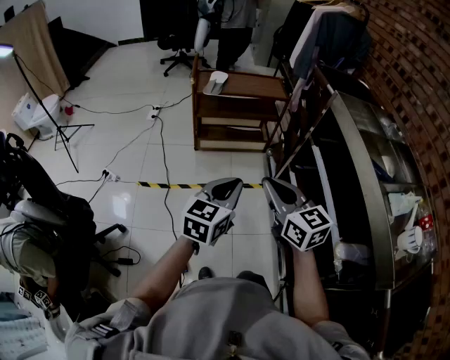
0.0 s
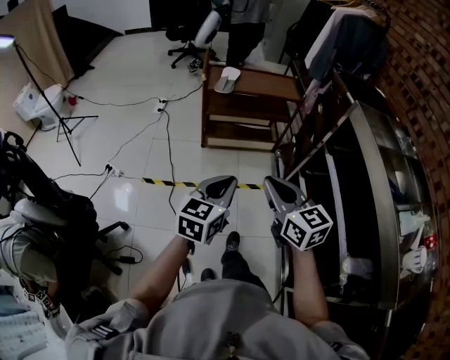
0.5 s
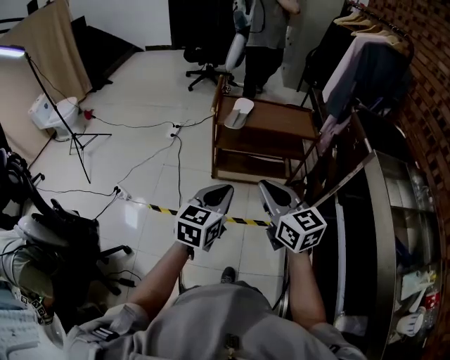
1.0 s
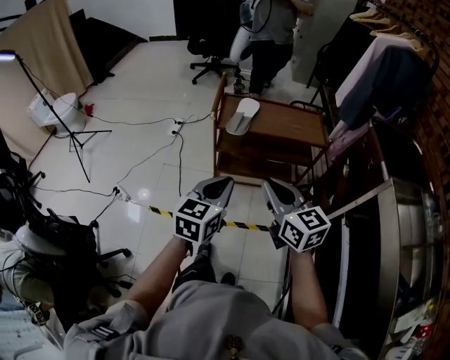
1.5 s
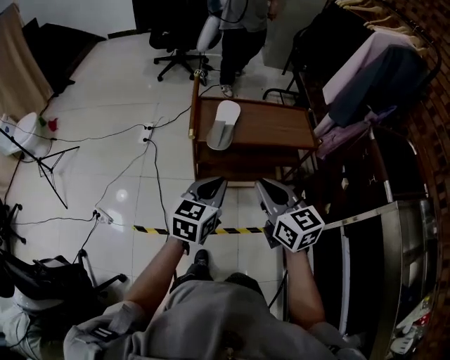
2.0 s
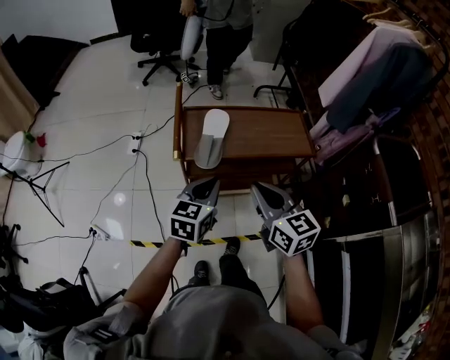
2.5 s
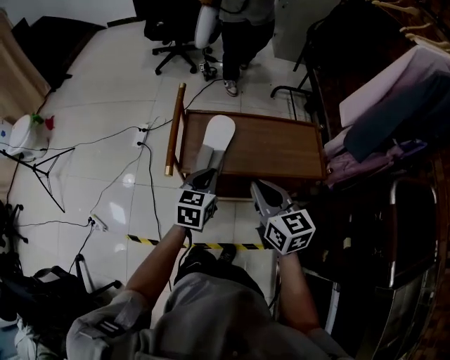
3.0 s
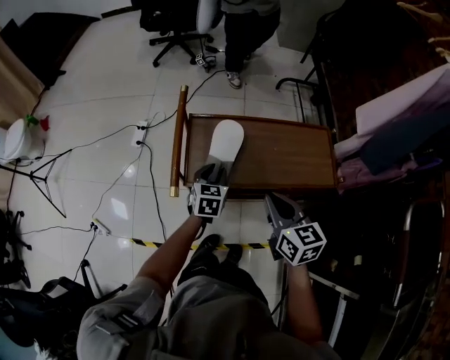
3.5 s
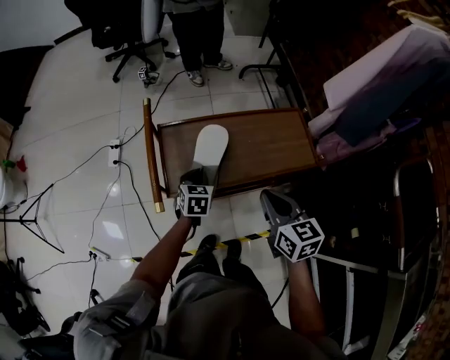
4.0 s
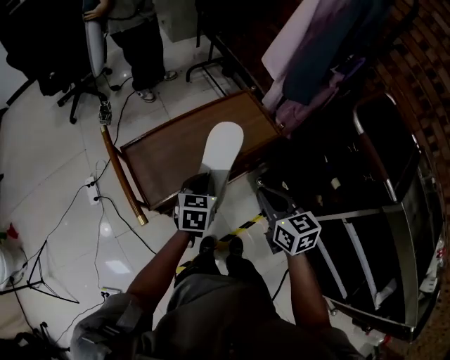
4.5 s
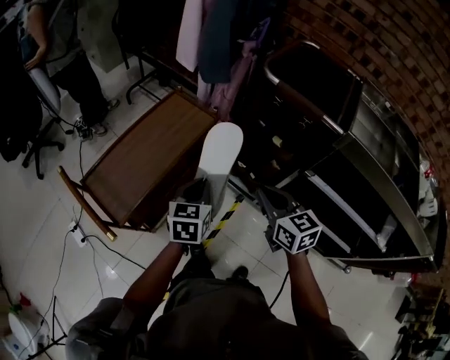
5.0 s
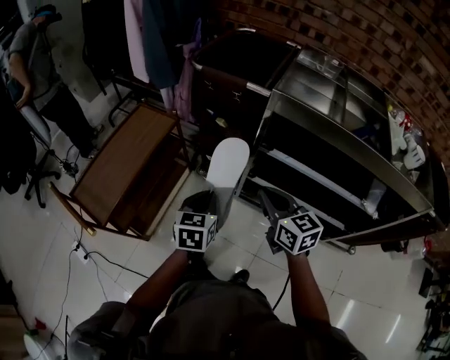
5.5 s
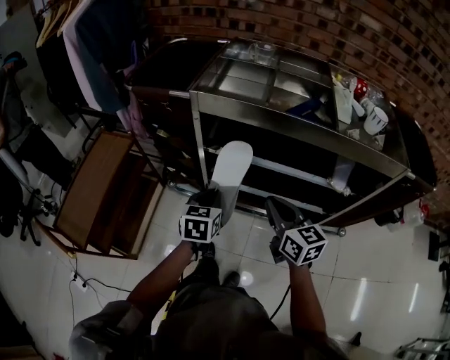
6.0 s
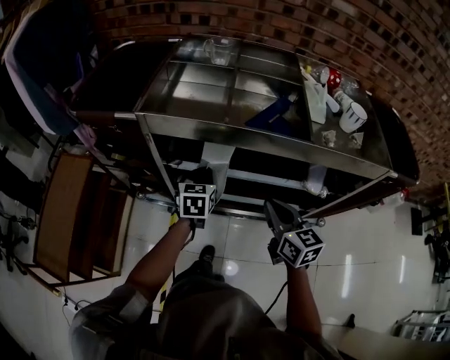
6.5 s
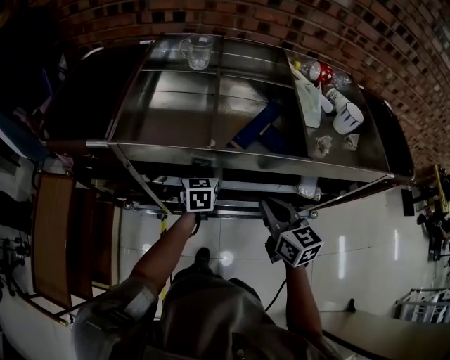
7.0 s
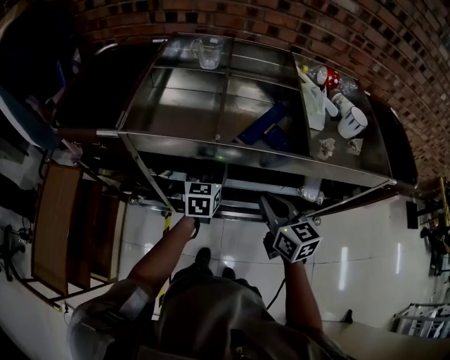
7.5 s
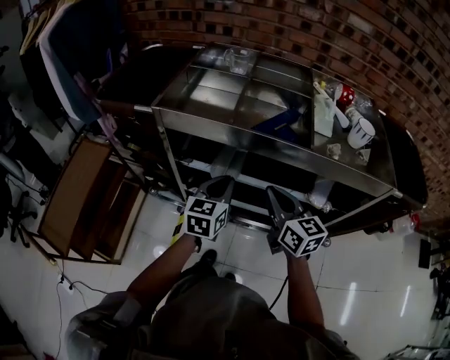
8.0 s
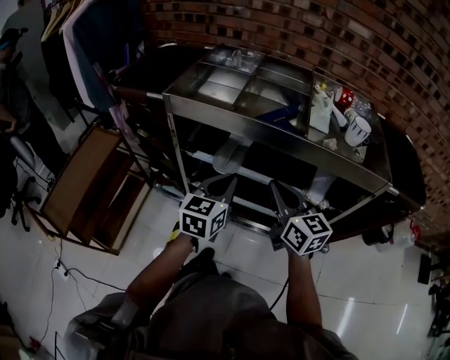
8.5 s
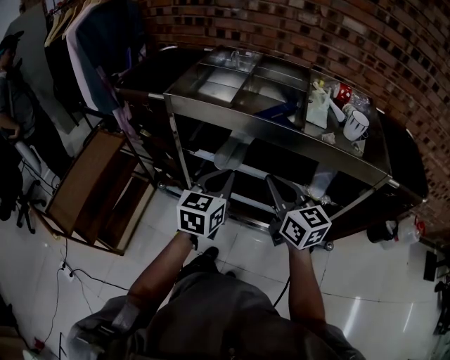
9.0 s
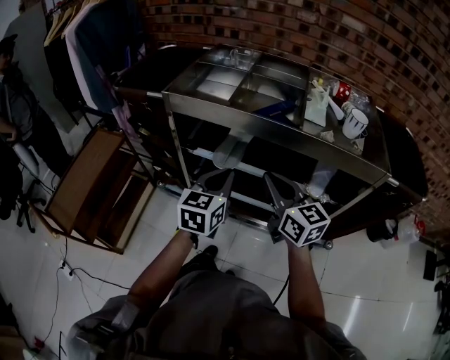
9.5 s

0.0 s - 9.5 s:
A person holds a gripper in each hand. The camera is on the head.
0.0 s - 2.0 s: The pair of grippers is taken forward, some 50 cm.
2.0 s - 4.0 s: The right gripper shifts approximately 30 cm forward, downward and to the right, and rotates approximately 20 degrees. Meanwhile the left gripper travels forward and downward by approximately 40 cm, rotates about 30 degrees, and opens, then closes again.
4.0 s - 5.5 s: The pair of grippers is taken approximately 50 cm. The right gripper rotates about 50 degrees. The left gripper turns by roughly 60 degrees.
5.5 s - 7.5 s: The left gripper goes roughly 40 cm to the right and forward, changes its angle by roughly 20 degrees, and opens up. Meanwhile the right gripper goes roughly 30 cm to the right, and rotates about 30 degrees.
7.5 s - 9.5 s: The right gripper shifts roughly 10 cm backward and upward, and turns by roughly 20 degrees. The left gripper travels backward and upward by roughly 25 cm, and closes up.

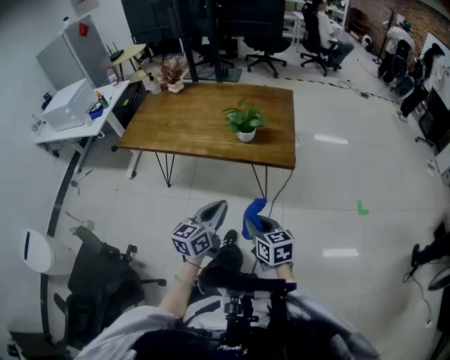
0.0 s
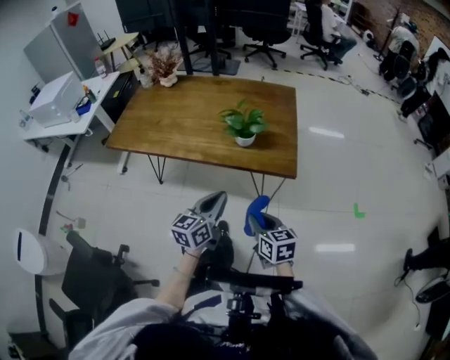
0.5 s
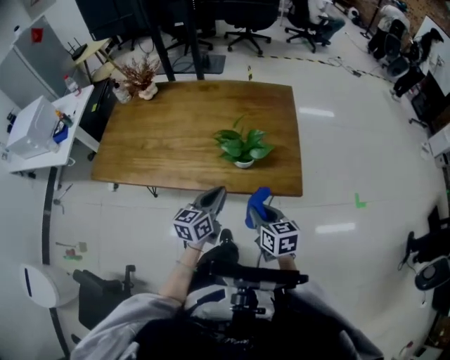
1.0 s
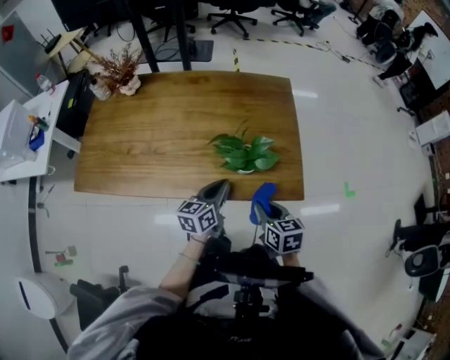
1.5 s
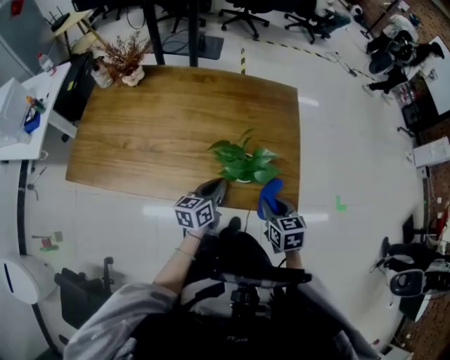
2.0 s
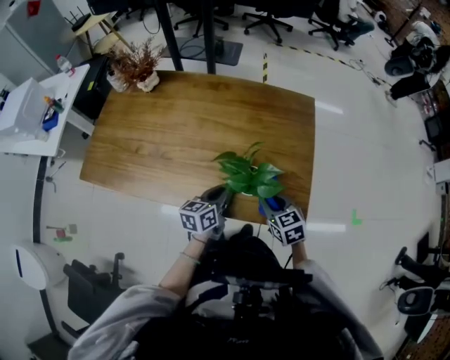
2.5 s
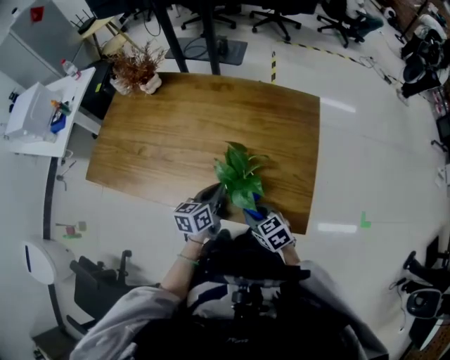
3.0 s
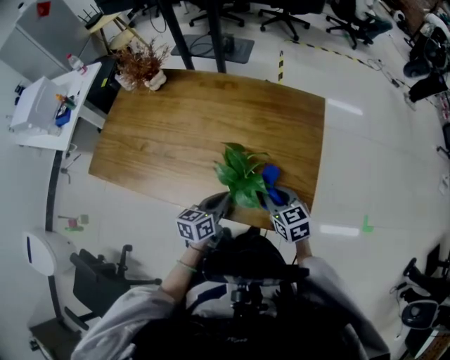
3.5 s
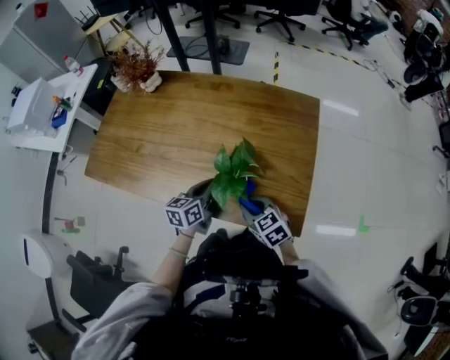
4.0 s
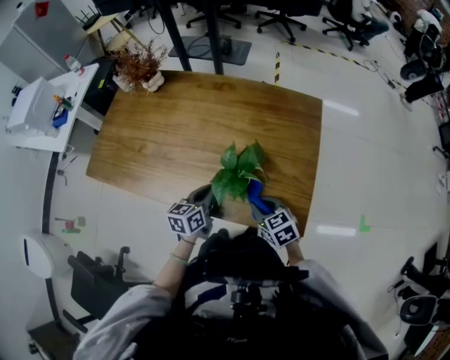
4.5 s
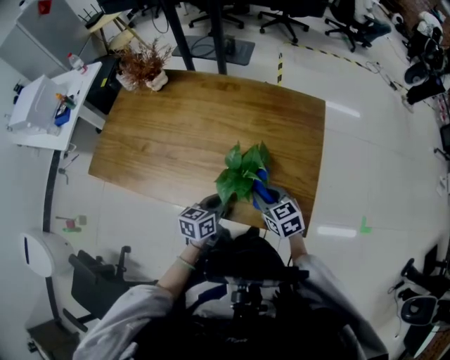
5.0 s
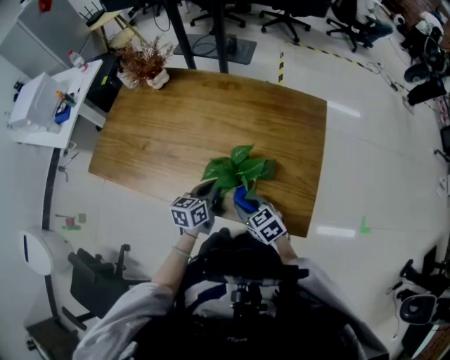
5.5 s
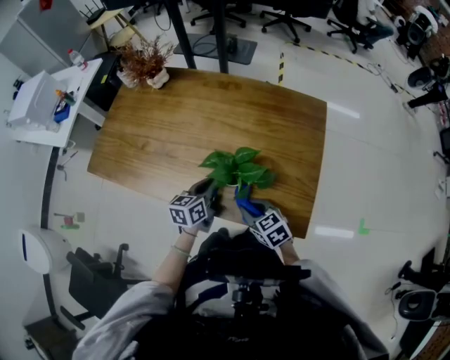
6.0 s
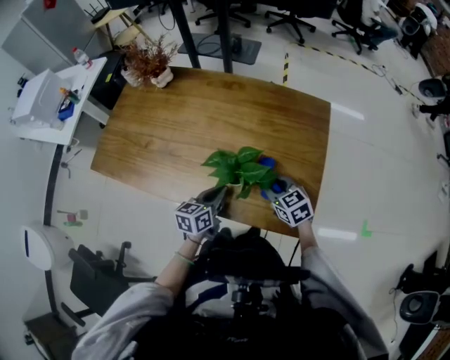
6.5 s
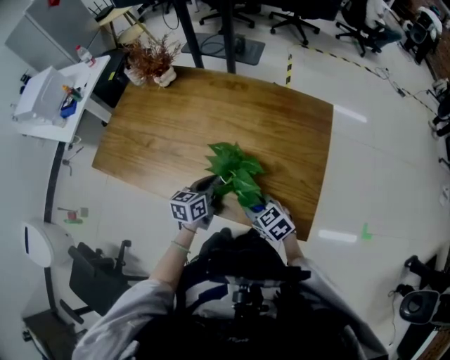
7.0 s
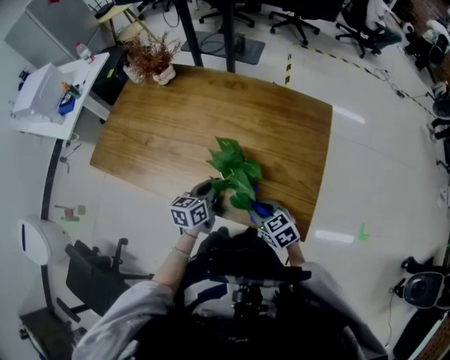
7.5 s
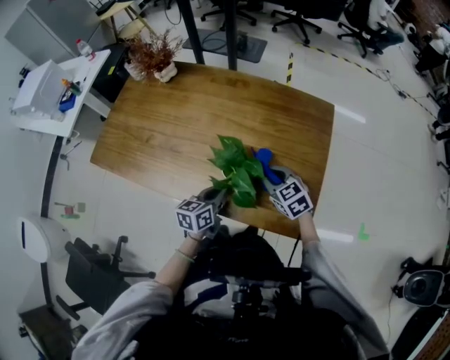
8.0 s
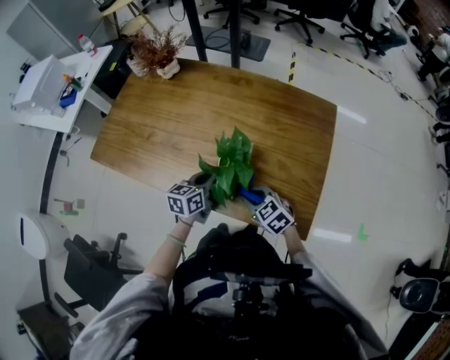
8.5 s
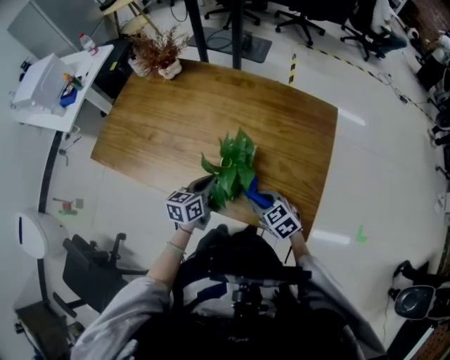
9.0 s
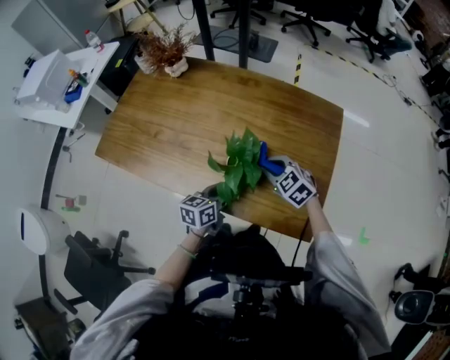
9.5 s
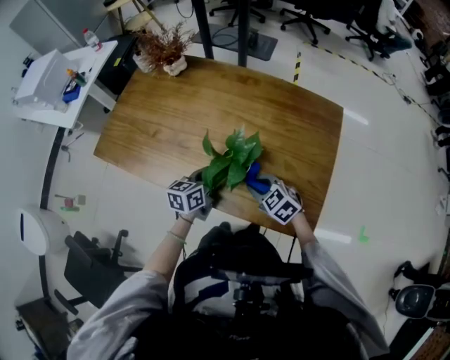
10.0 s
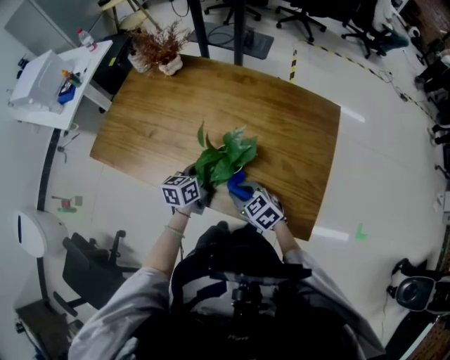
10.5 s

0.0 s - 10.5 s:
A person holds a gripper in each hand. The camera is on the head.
0.0 s - 2.0 s: The two grippers go some 35 cm forward. The right gripper turns by roughly 20 degrees.
2.0 s - 4.0 s: The left gripper moves roughly 5 cm, while the right gripper is displaced to the left by approximately 5 cm, and rotates approximately 30 degrees.
4.0 s - 6.5 s: The right gripper heads forward, covering approximately 5 cm.
6.5 s - 8.5 s: The right gripper goes forward and backward, roughly 10 cm each way, reversing 2 times. Meanwhile the left gripper moves forward and backward over roughly 5 cm, changing direction 2 times.
8.5 s - 10.5 s: The right gripper shifts about 5 cm to the left, while the left gripper shifts by approximately 5 cm.

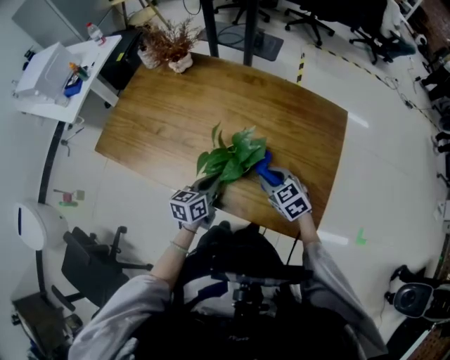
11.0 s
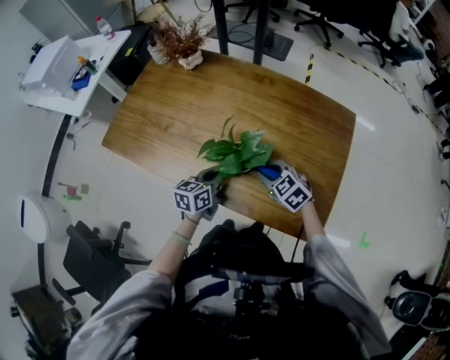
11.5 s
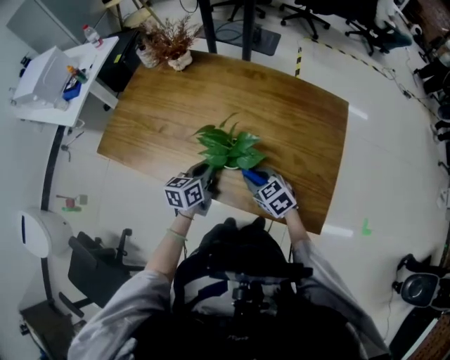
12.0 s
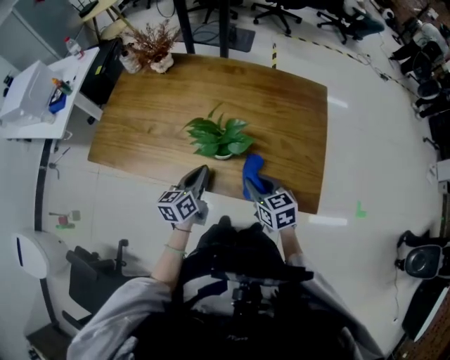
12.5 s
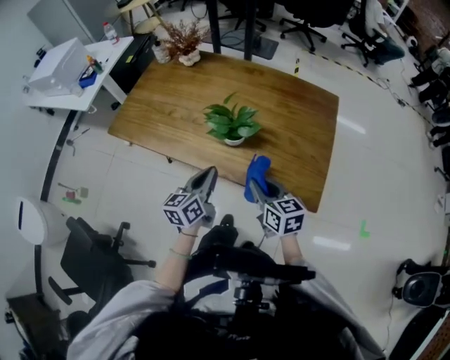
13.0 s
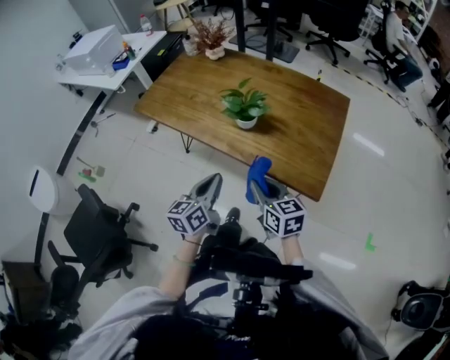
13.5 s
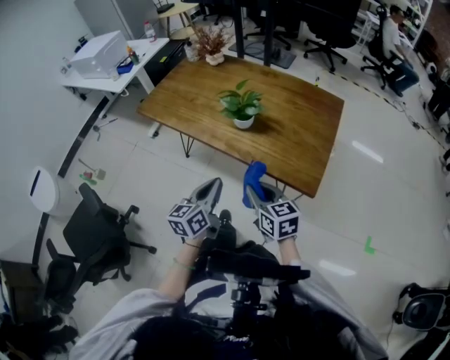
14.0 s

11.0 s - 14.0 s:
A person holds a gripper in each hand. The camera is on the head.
11.0 s - 12.5 s: The left gripper heads to the left, covering roughly 5 cm; the right gripper moves backward, some 10 cm, and changes its angle by roughly 30 degrees.
12.5 s - 14.0 s: Both grippers travel together backward, roughly 25 cm.

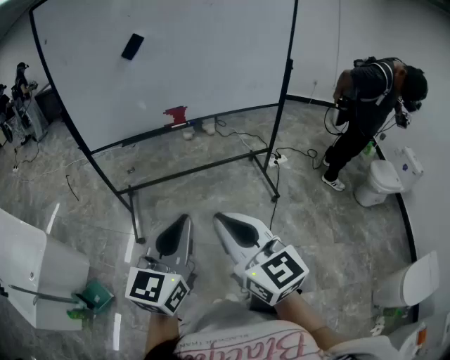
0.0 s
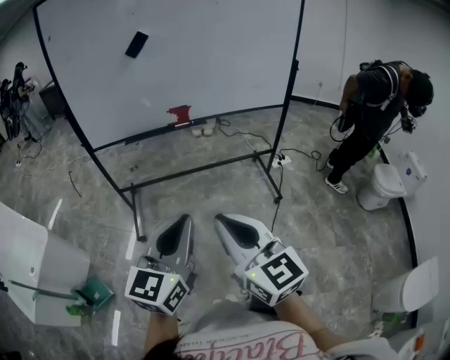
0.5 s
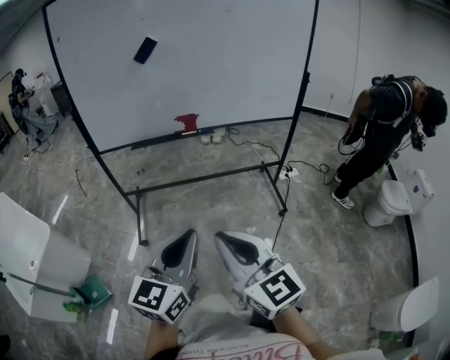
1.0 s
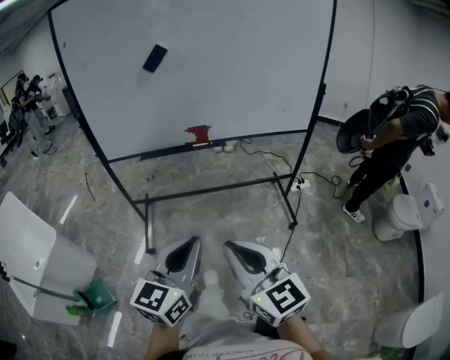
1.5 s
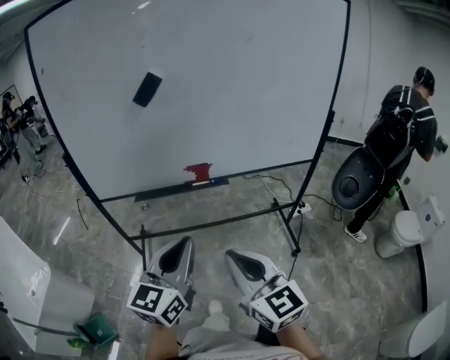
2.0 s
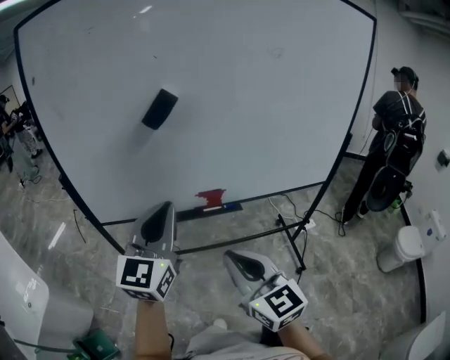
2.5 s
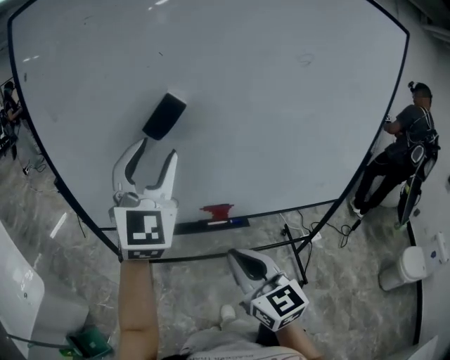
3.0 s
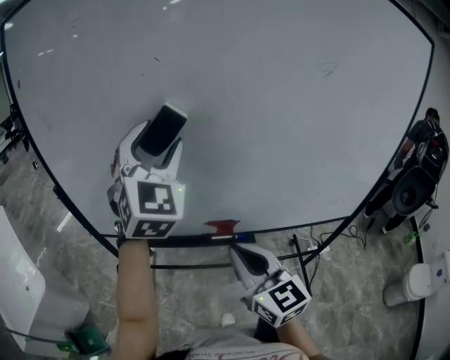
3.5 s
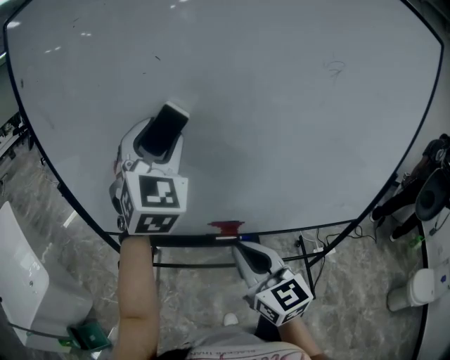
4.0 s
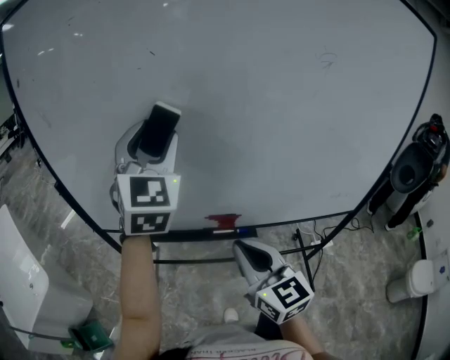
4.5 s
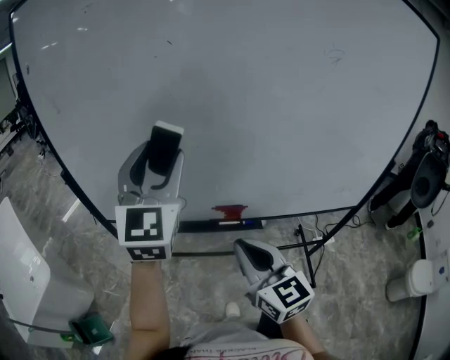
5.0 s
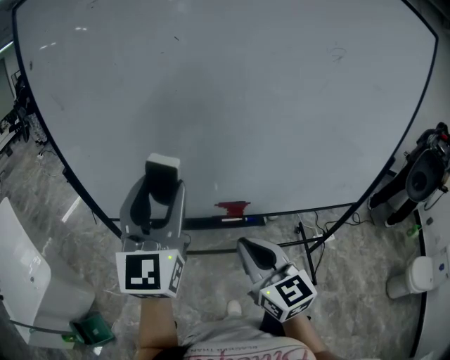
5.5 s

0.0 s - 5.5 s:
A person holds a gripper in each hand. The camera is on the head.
0.0 s - 2.0 s: The two grippers go about 20 cm forward.
2.0 s - 3.5 s: The right gripper shifts roughly 25 cm forward. The left gripper moves forward and upward, roughly 40 cm, rolls clockwise, seen from behind, by some 50 degrees, and opens its fingers.
3.5 s - 5.5 s: The left gripper goes some 15 cm backward, downward and to the left, and turns by approximately 30 degrees.
